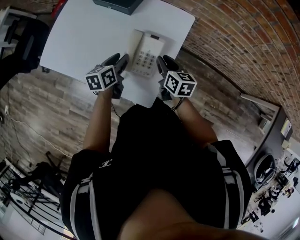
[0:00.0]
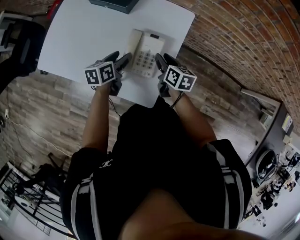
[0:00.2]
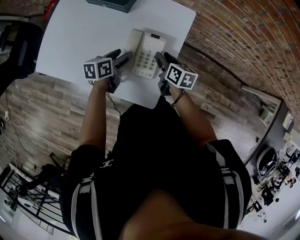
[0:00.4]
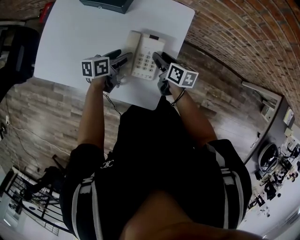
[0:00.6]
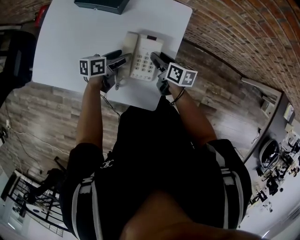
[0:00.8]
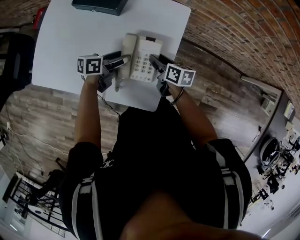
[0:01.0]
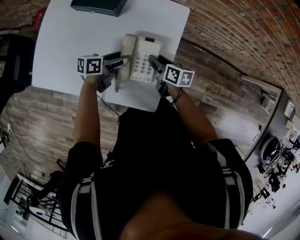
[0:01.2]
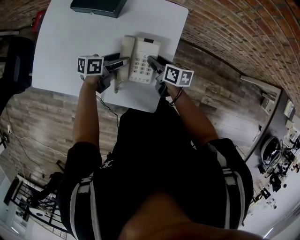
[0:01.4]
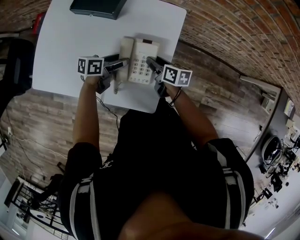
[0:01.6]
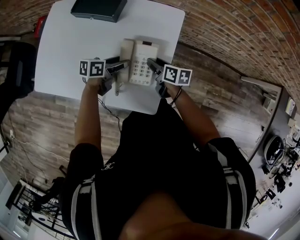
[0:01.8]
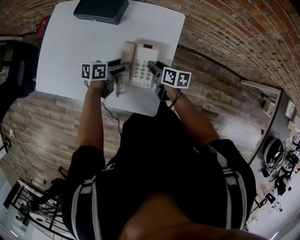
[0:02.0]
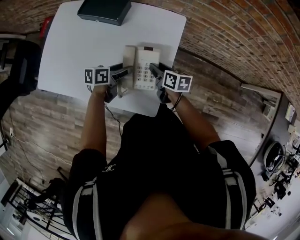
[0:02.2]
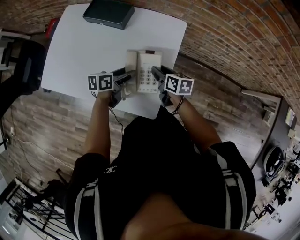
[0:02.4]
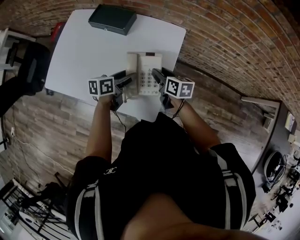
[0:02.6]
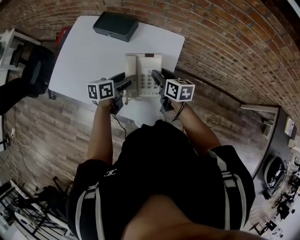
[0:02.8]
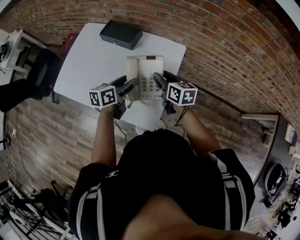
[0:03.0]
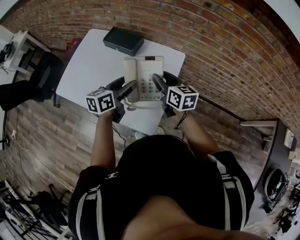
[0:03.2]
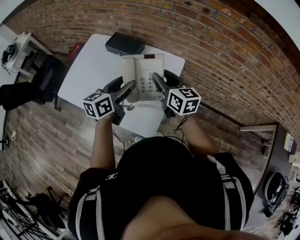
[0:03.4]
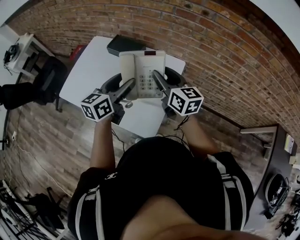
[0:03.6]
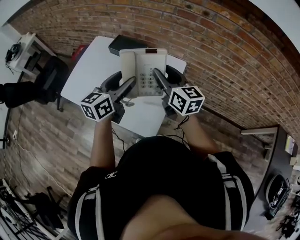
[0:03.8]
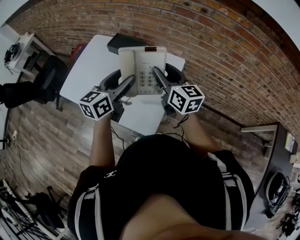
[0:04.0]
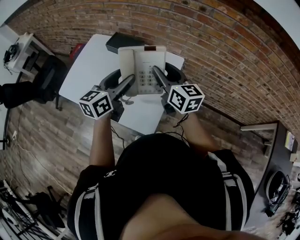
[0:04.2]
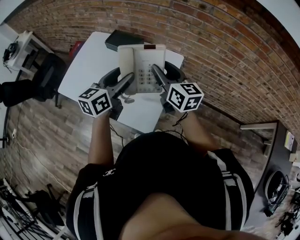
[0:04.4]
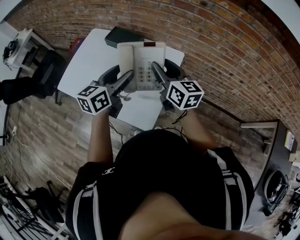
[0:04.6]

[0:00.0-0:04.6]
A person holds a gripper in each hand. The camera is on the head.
0:00.0 to 0:01.6: The left gripper travels downward and forward by roughly 10 cm, turns by approximately 40 degrees, and opens up; the right gripper heads downward, covering about 5 cm, and opens its fingers.
0:01.6 to 0:03.0: Both grippers travel together upward, roughly 15 cm. The left gripper turns by approximately 30 degrees; the right gripper swivels some 20 degrees.
0:03.0 to 0:04.6: Both grippers travel together upward, approximately 15 cm. The right gripper rotates approximately 20 degrees. The left gripper changes its angle by approximately 20 degrees.

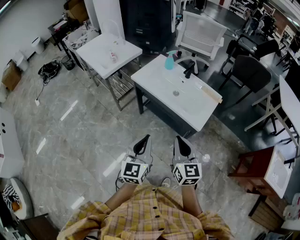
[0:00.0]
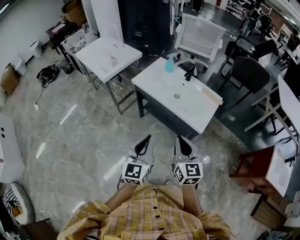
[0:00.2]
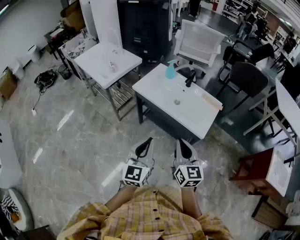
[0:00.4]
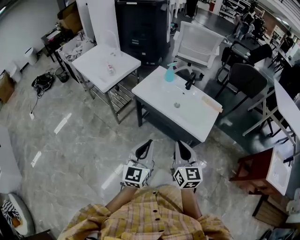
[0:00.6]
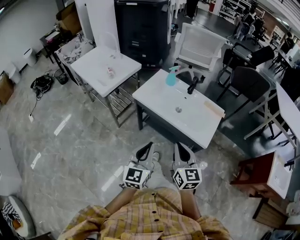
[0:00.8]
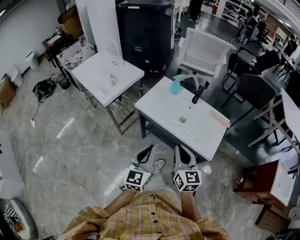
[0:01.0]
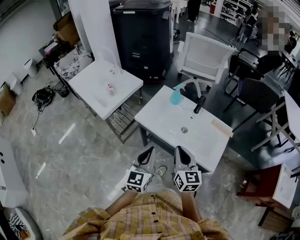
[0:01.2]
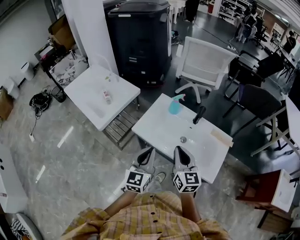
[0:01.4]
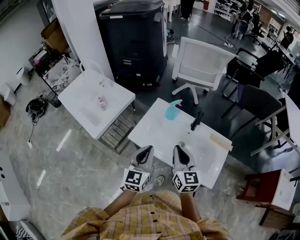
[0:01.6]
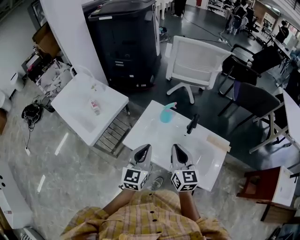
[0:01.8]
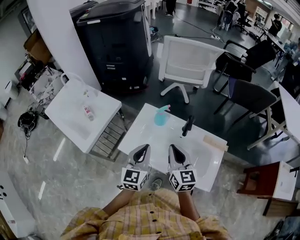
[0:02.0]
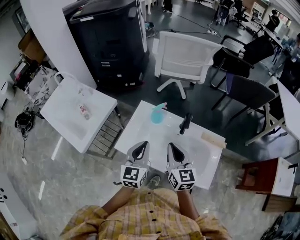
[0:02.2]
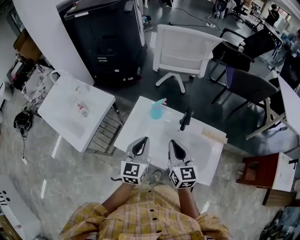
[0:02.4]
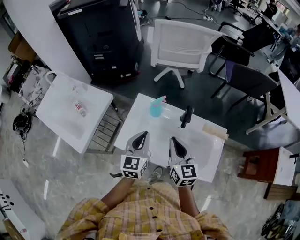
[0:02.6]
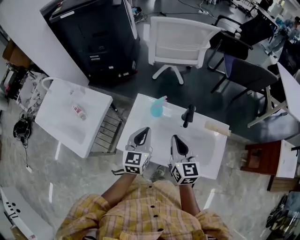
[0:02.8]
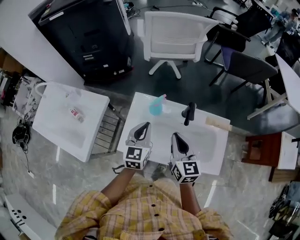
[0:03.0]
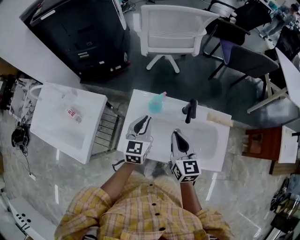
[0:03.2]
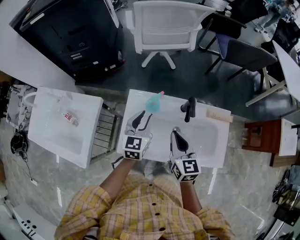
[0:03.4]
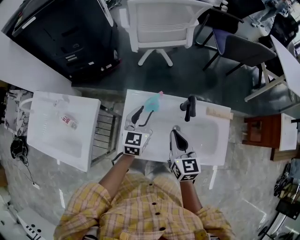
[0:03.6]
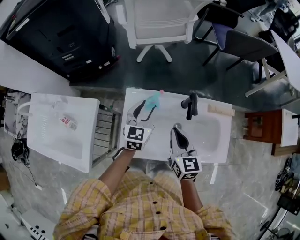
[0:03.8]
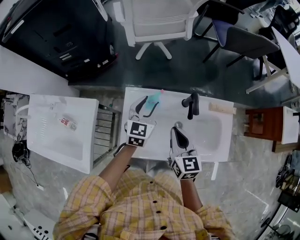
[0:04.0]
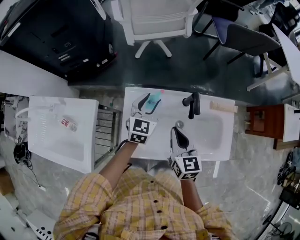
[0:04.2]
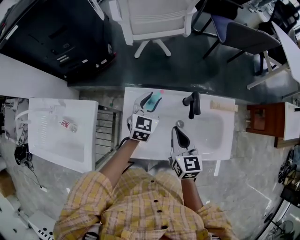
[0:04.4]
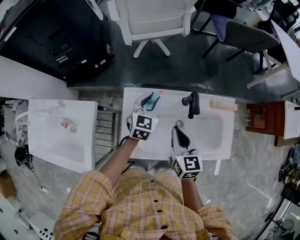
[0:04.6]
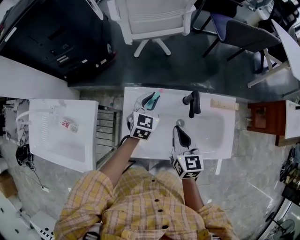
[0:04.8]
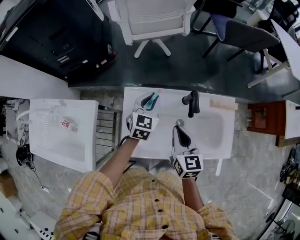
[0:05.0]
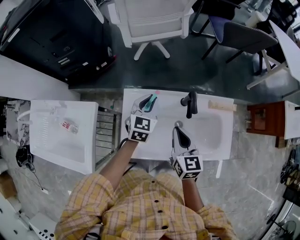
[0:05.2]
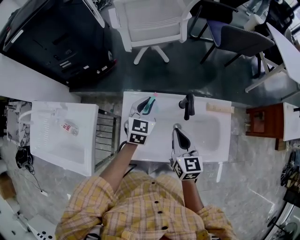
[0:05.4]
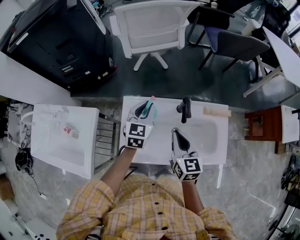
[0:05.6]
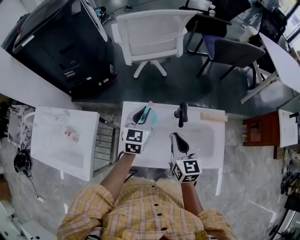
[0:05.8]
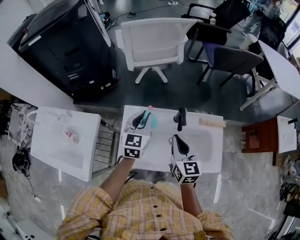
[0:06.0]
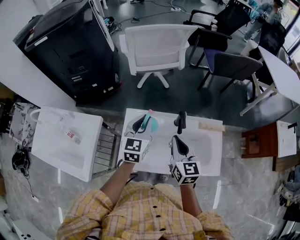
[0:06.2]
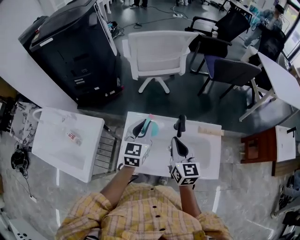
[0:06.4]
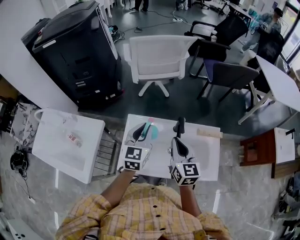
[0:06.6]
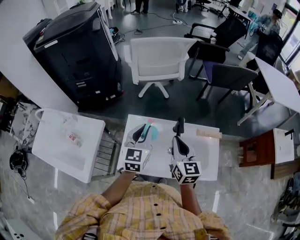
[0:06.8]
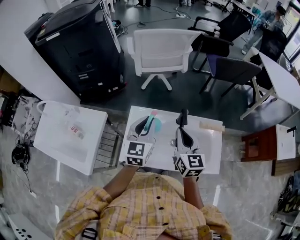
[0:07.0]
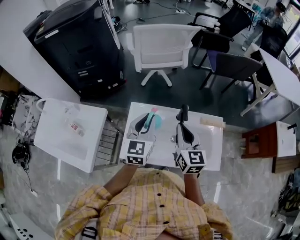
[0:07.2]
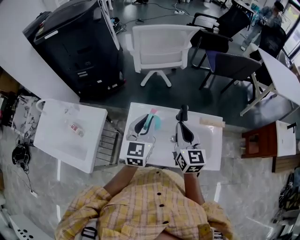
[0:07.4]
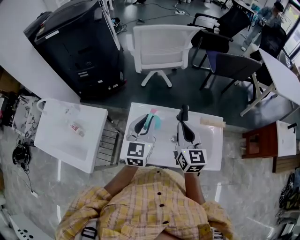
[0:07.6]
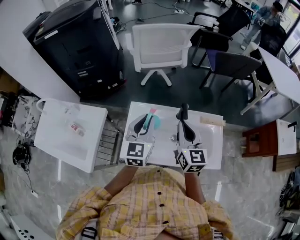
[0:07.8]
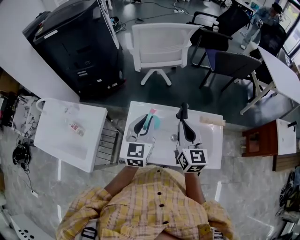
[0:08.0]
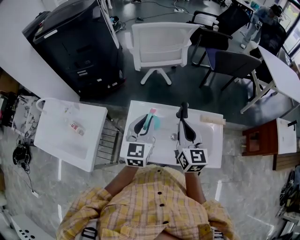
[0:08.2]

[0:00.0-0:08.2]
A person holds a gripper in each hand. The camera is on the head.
0:00.0 to 0:01.6: Both grippers travel together forward, some 40 cm.
0:01.6 to 0:03.2: The right gripper shifts approximately 15 cm forward and downward, and turns by about 20 degrees. The left gripper heads forward, covering about 25 cm, and turns by roughly 20 degrees.
0:03.2 to 0:05.0: The left gripper is displaced forward and downward by some 15 cm, turns by roughly 20 degrees, and opens, then closes once more. Meanwhile the right gripper moves roughly 5 cm.
0:05.0 to 0:06.6: The left gripper moves upward and backward, about 20 cm. The right gripper heads upward, covering approximately 10 cm.
0:06.6 to 0:08.2: The grippers stay close to where they were, moving slightly.

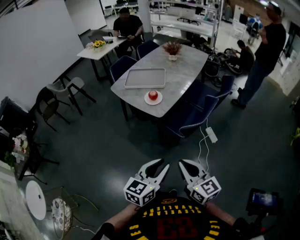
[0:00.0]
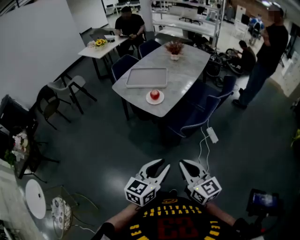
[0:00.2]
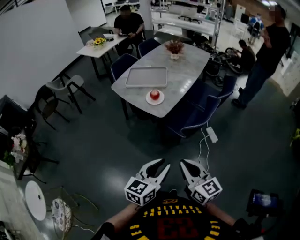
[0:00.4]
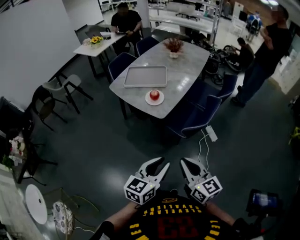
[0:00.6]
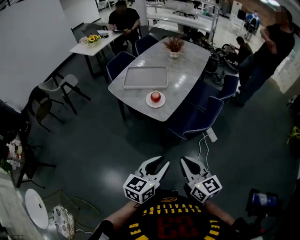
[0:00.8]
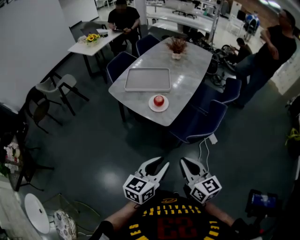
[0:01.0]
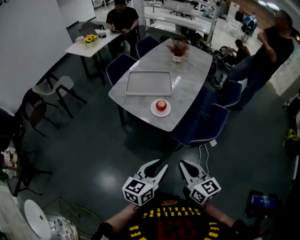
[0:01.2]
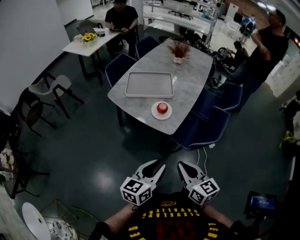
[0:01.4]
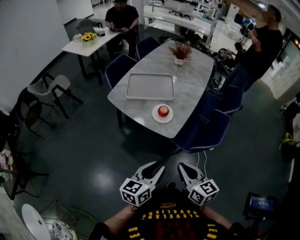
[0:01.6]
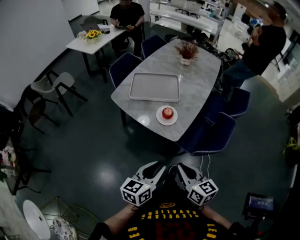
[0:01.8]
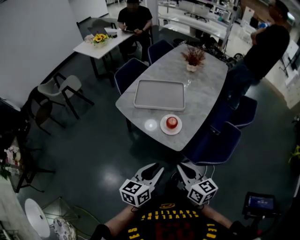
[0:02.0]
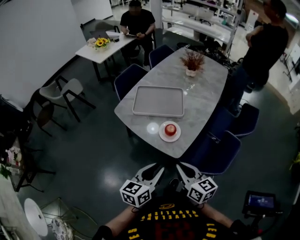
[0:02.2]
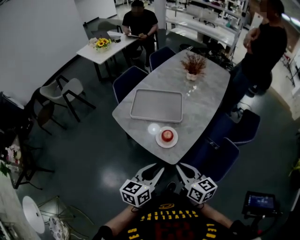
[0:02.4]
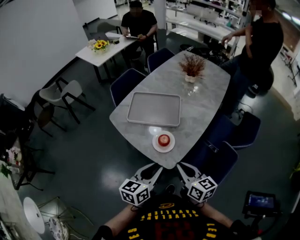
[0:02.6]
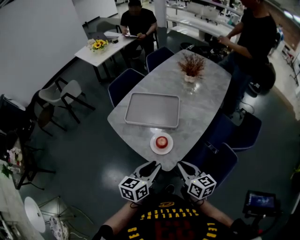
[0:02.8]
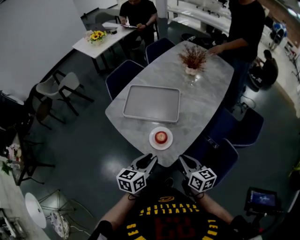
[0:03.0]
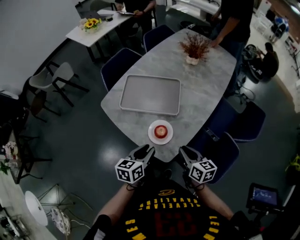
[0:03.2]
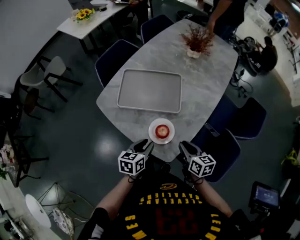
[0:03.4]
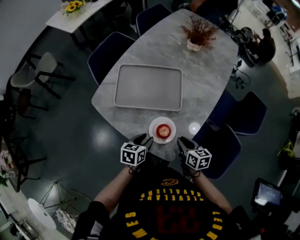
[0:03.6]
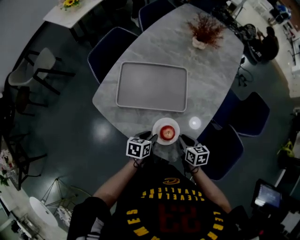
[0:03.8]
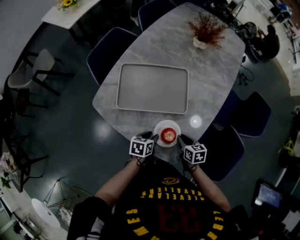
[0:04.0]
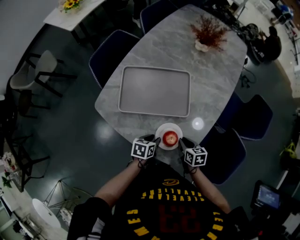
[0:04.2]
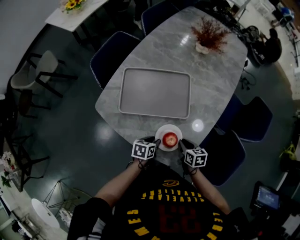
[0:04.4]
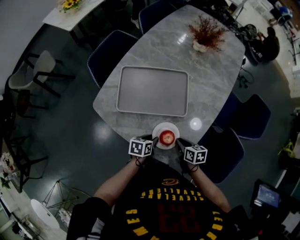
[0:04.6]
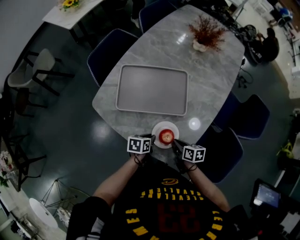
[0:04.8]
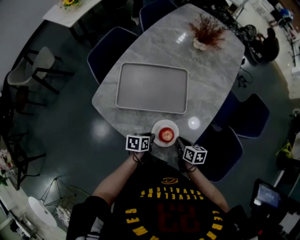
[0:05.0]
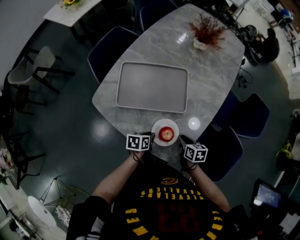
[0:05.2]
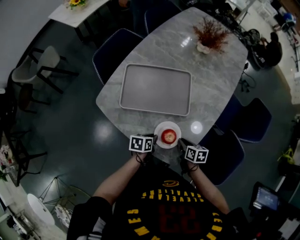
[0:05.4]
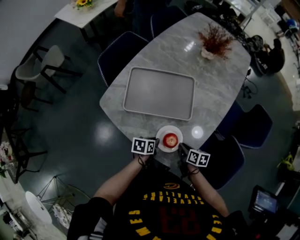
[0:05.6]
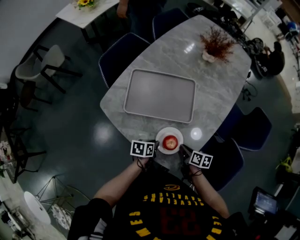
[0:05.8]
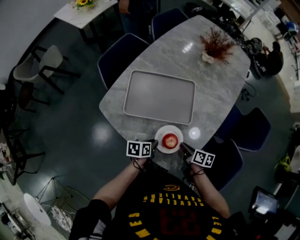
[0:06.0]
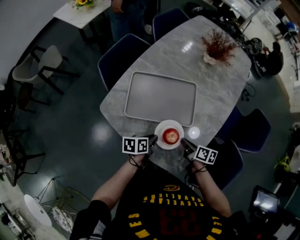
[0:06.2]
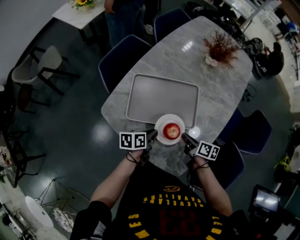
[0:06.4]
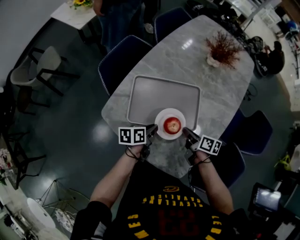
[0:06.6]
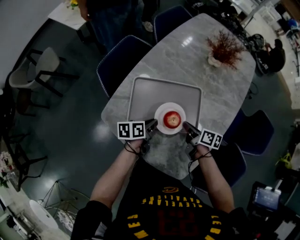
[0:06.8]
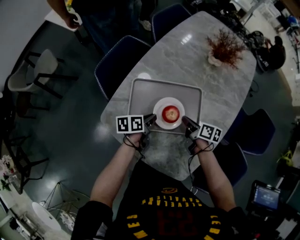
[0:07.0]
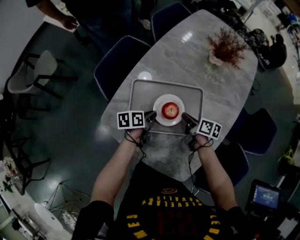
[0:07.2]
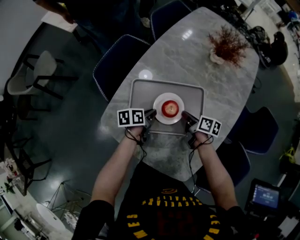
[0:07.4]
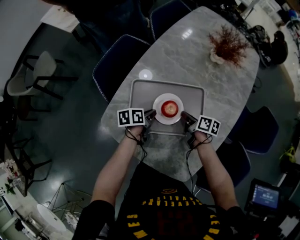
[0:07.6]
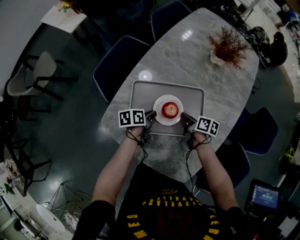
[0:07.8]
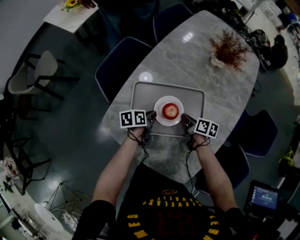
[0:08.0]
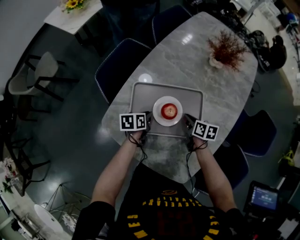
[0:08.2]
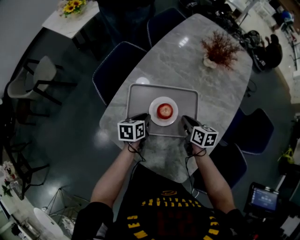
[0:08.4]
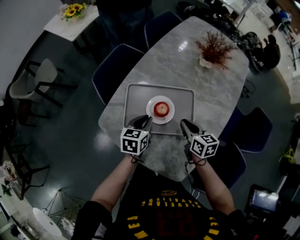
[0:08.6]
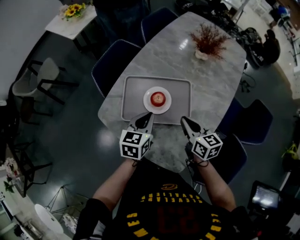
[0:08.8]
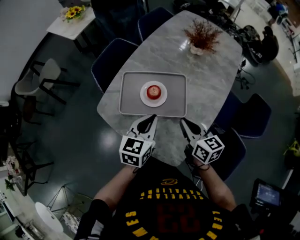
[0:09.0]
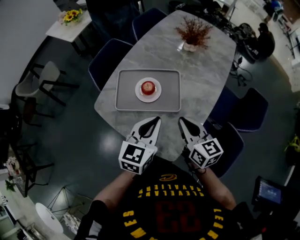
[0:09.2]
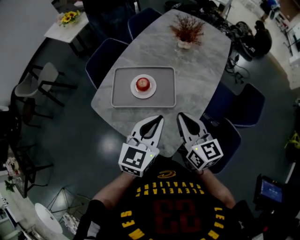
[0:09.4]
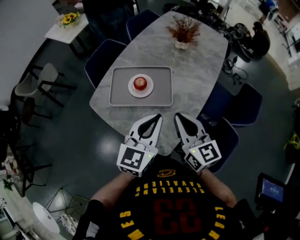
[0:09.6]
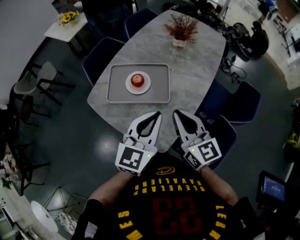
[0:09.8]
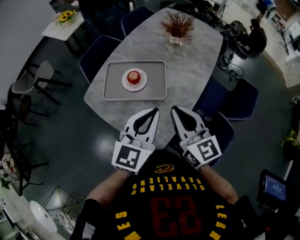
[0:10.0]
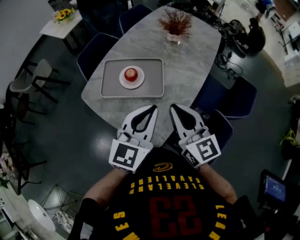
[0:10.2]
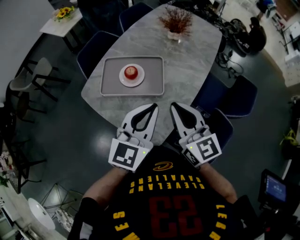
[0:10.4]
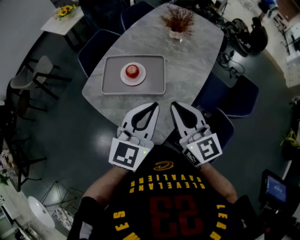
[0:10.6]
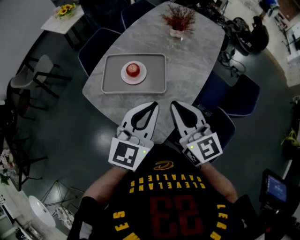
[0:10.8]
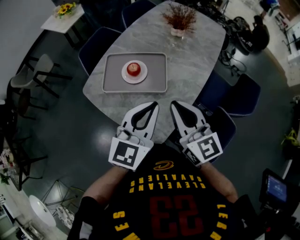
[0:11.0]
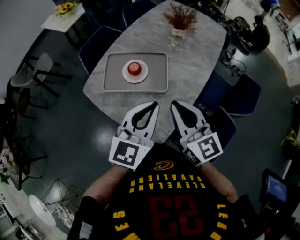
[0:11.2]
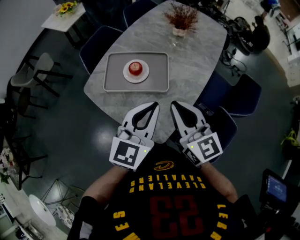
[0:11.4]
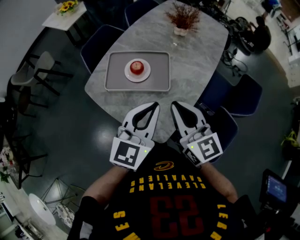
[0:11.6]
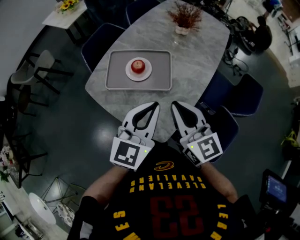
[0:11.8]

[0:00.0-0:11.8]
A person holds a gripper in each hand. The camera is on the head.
0:00.0 to 0:01.4: Both grippers travel together forward and to the left, about 25 cm.
0:01.4 to 0:03.0: The two grippers go some 30 cm forward.
0:03.0 to 0:04.4: The grippers both shift downward and forward by about 25 cm. The left gripper rotates some 30 degrees. The right gripper rotates roughly 30 degrees.
0:04.4 to 0:06.0: The left gripper closes, while the right gripper changes its angle by approximately 30 degrees.
0:06.0 to 0:07.4: The grippers both shift forward and to the left by approximately 25 cm.
0:07.4 to 0:08.8: The grippers both shift upward and backward by approximately 20 cm. The right gripper swivels roughly 40 degrees. Meanwhile the left gripper changes its angle by approximately 50 degrees.
0:08.8 to 0:10.4: The right gripper travels upward, backward and to the right by roughly 25 cm, and rotates roughly 30 degrees. Meanwhile the left gripper goes some 30 cm backward, upward and to the right, and changes its angle by some 30 degrees.
0:10.4 to 0:11.8: The grippers make only small movements.
